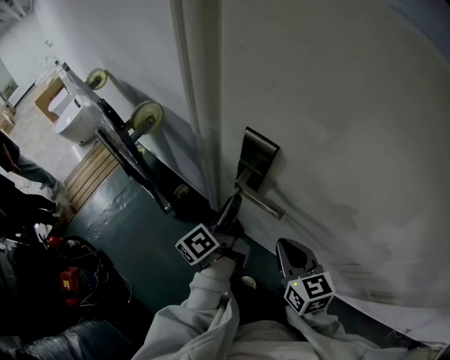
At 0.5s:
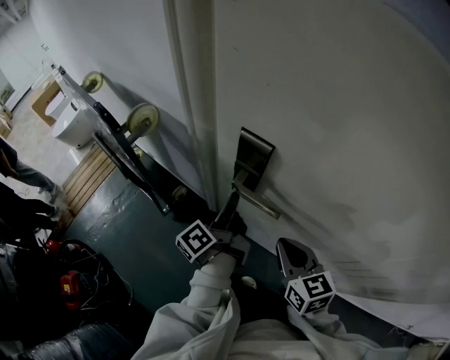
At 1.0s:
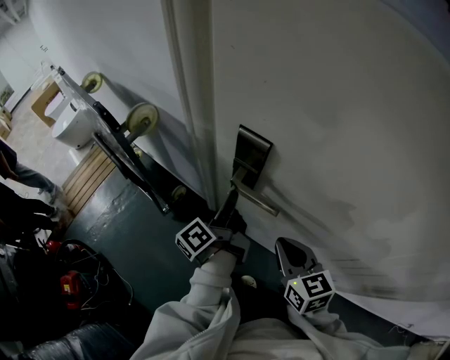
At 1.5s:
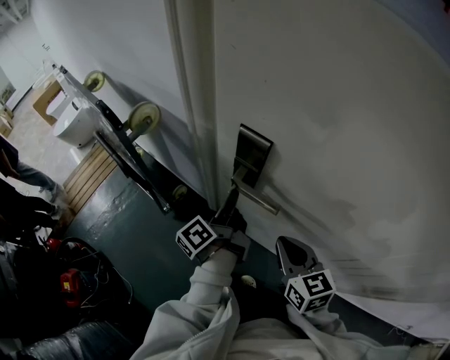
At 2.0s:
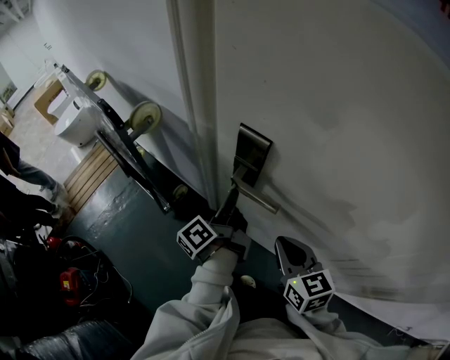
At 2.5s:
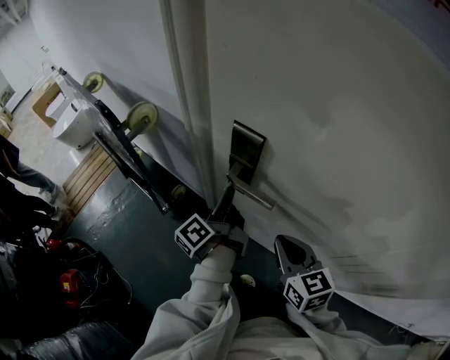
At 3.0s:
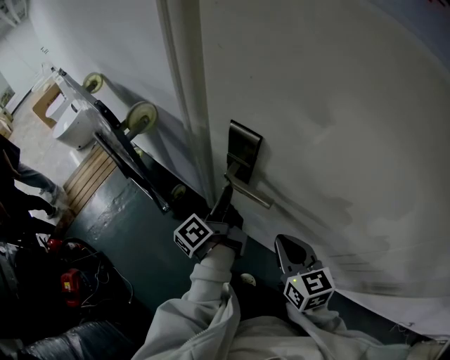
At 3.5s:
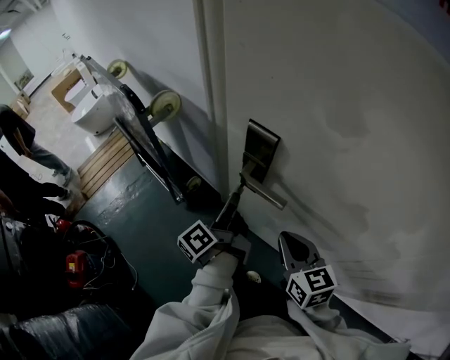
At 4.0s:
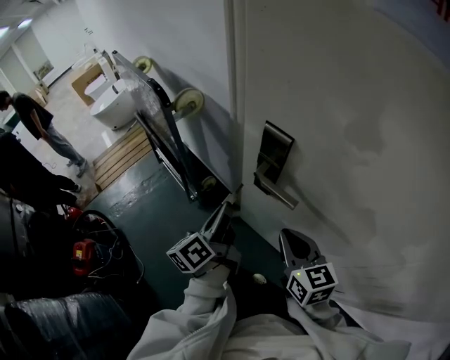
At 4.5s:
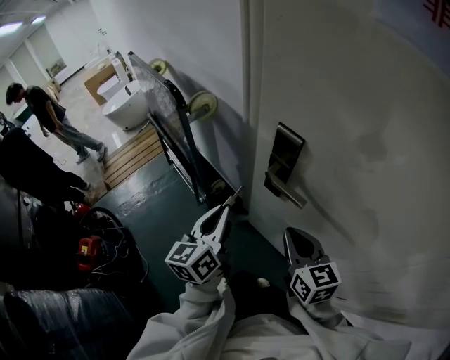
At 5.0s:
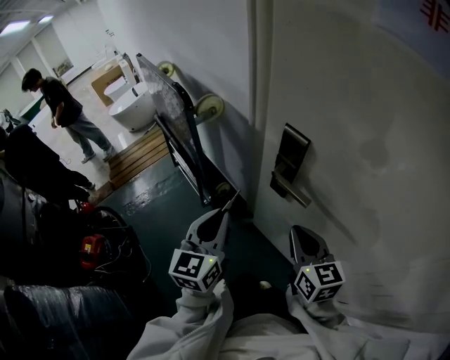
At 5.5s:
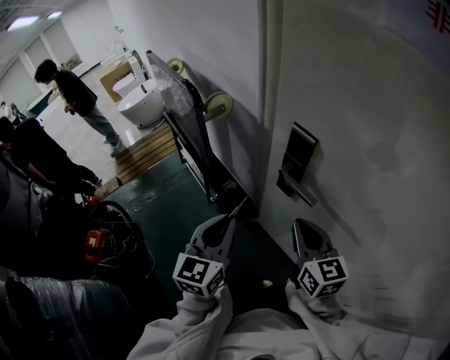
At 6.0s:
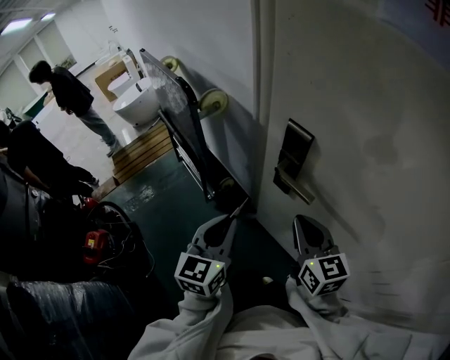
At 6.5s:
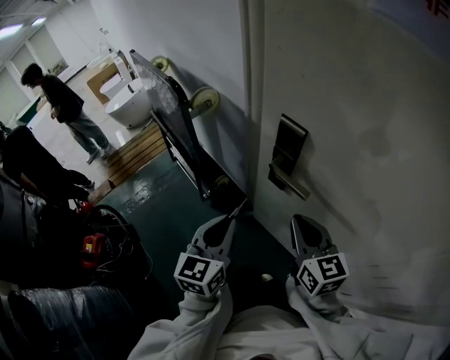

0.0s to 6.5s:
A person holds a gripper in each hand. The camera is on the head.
0.0s to 2.0s: The left gripper closes.
2.0s to 4.5s: The right gripper moves to the left, about 5 cm. The left gripper goes some 20 cm backward, to the left and upward, and rotates around the line of its fingers by about 50 degrees, clockwise from behind.
4.5s to 6.5s: The left gripper changes its angle by roughly 20 degrees.

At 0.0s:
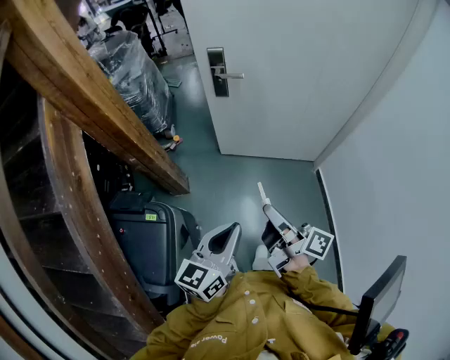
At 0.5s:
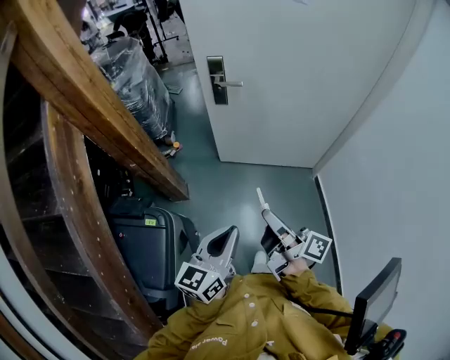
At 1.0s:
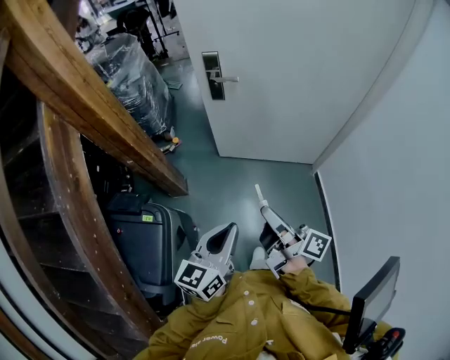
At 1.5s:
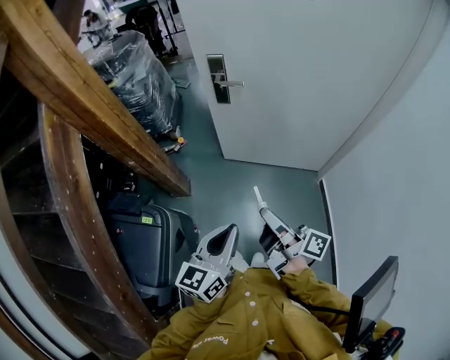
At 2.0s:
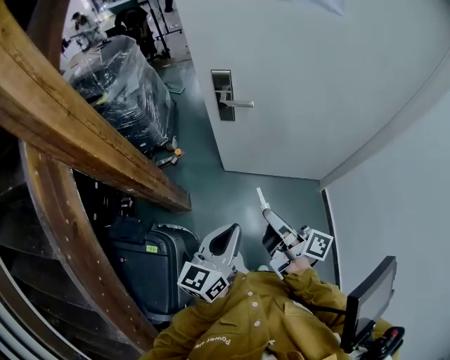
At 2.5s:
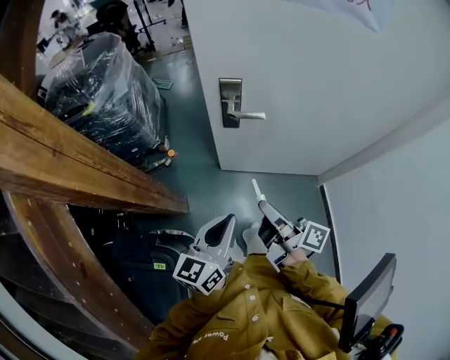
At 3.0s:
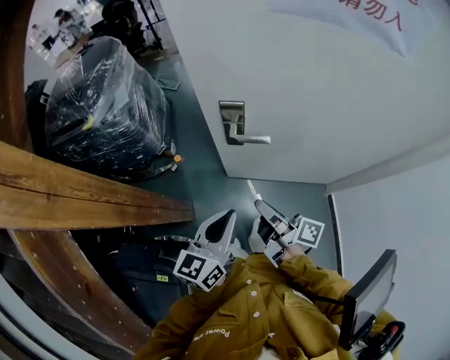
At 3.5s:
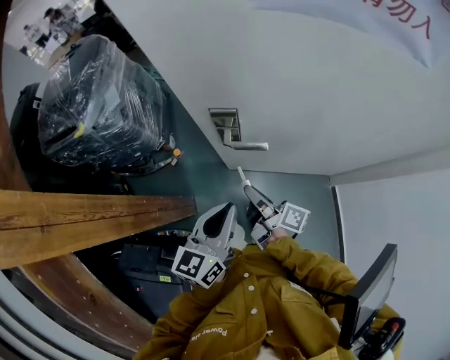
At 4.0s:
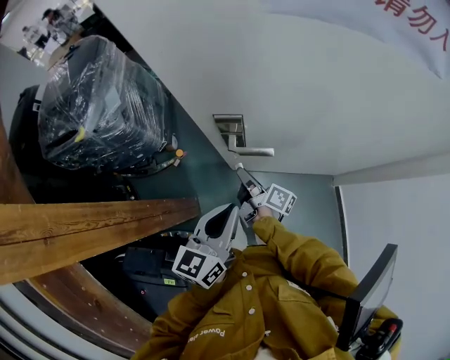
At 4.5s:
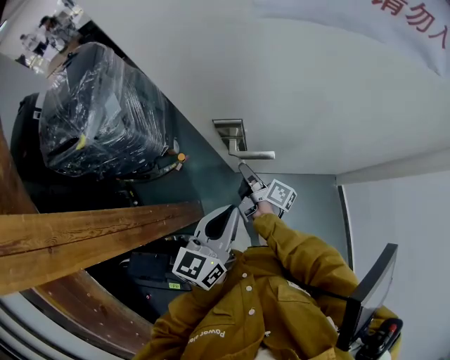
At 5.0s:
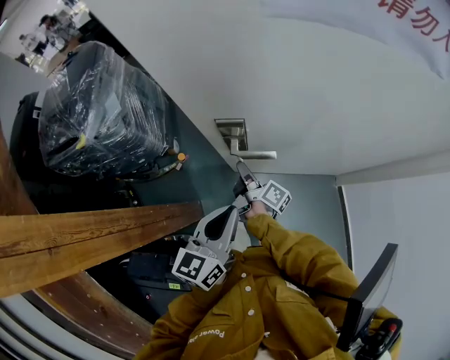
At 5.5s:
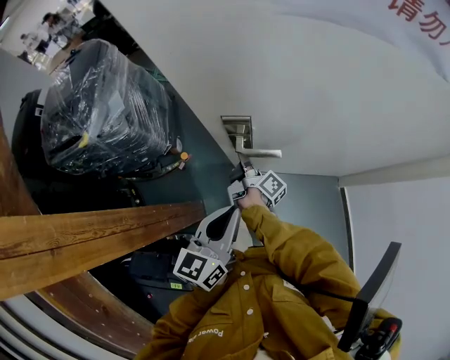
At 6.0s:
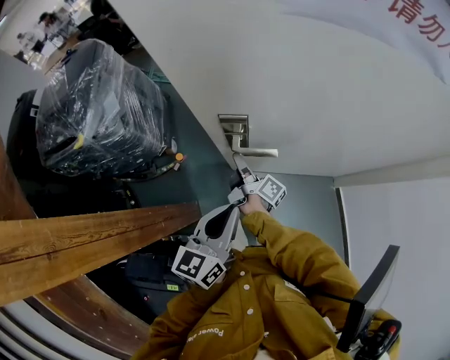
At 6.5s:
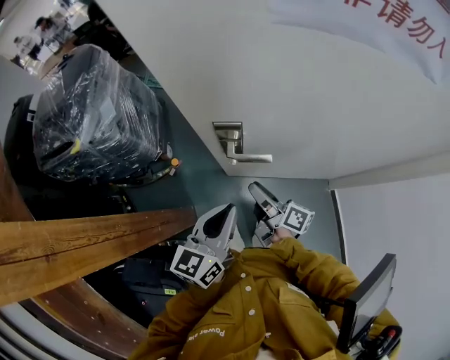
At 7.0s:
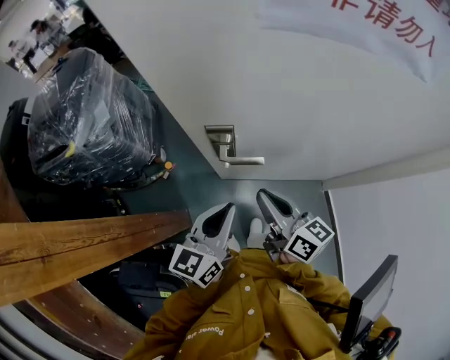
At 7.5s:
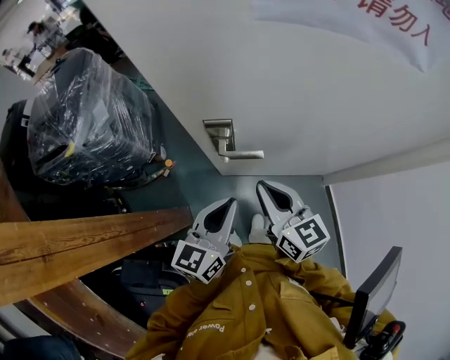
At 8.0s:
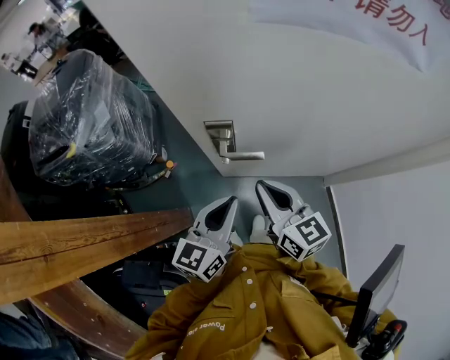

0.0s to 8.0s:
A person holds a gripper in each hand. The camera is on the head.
0.0s to 2.0s: The left gripper ends up some 15 cm from where it was.
2.0s to 4.0s: The left gripper ends up about 30 cm from where it was.

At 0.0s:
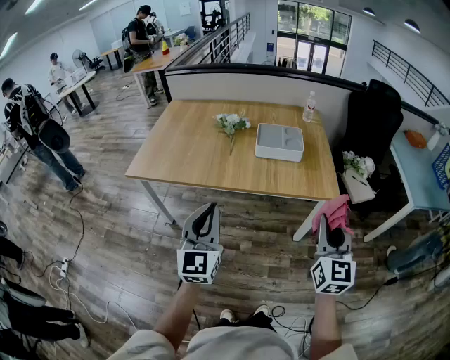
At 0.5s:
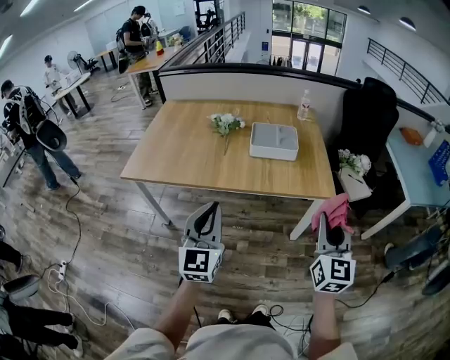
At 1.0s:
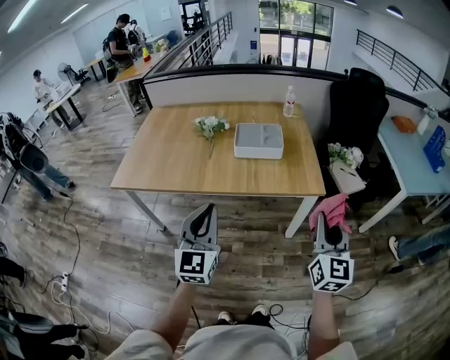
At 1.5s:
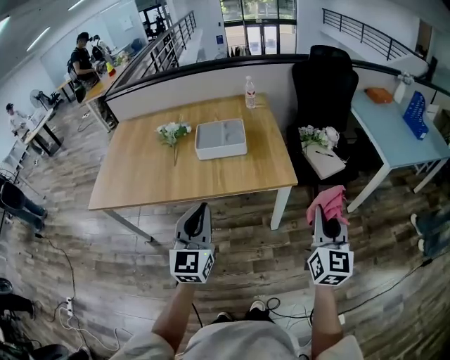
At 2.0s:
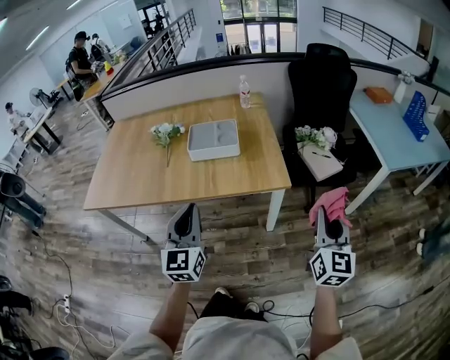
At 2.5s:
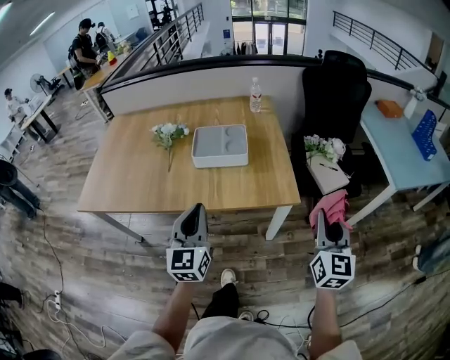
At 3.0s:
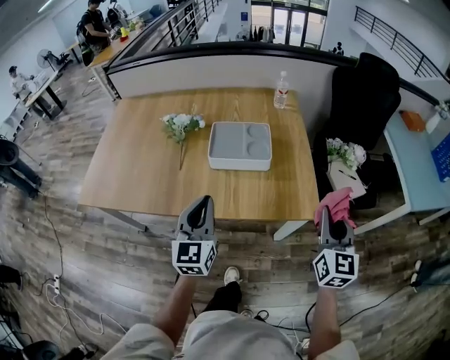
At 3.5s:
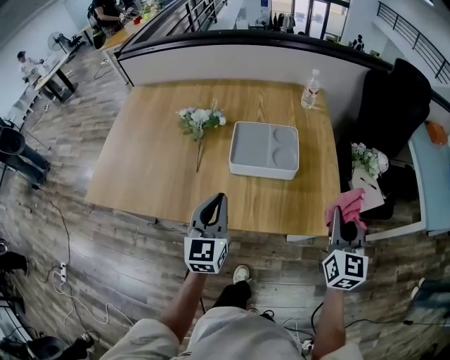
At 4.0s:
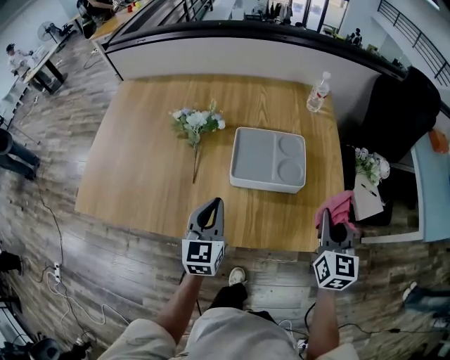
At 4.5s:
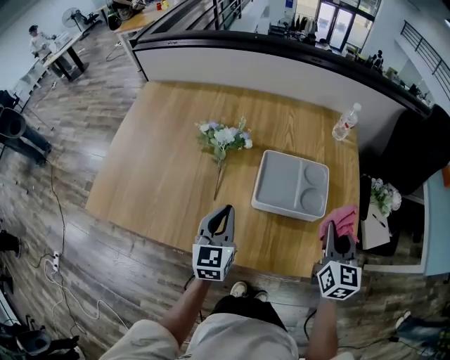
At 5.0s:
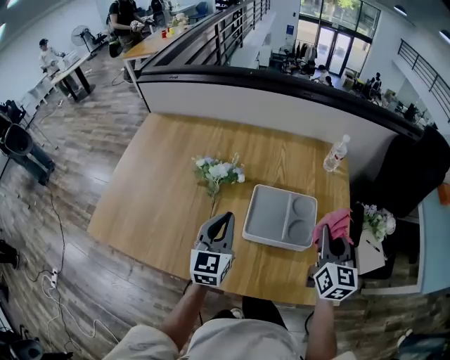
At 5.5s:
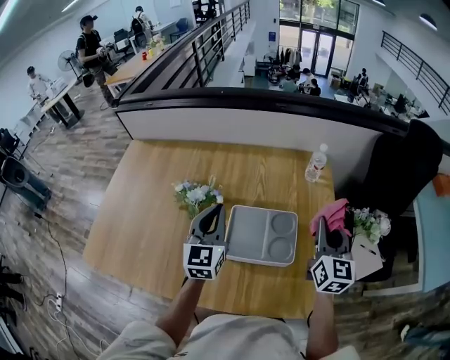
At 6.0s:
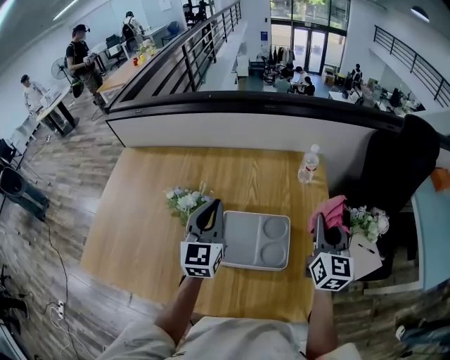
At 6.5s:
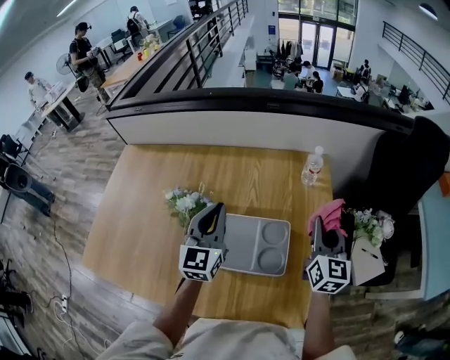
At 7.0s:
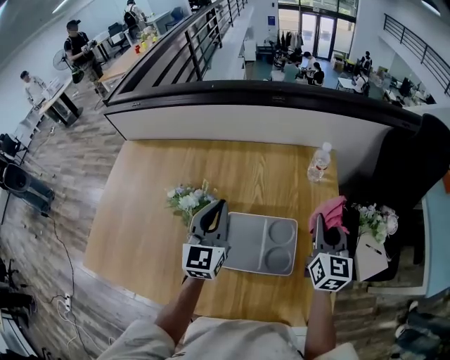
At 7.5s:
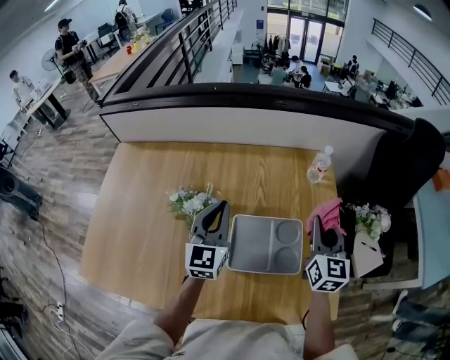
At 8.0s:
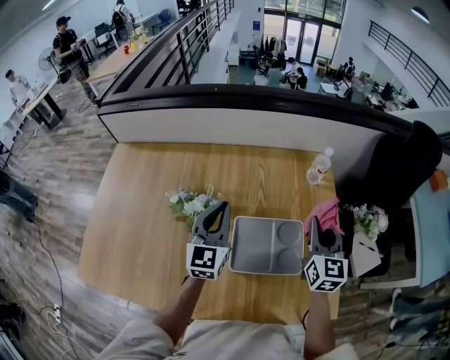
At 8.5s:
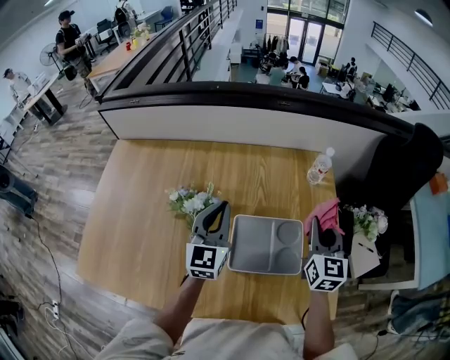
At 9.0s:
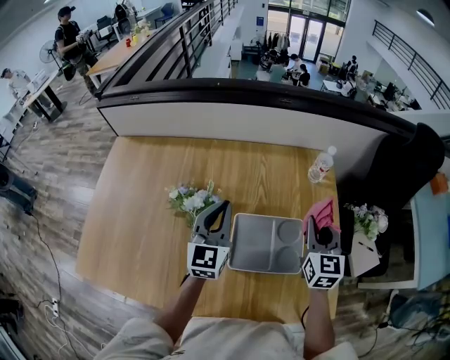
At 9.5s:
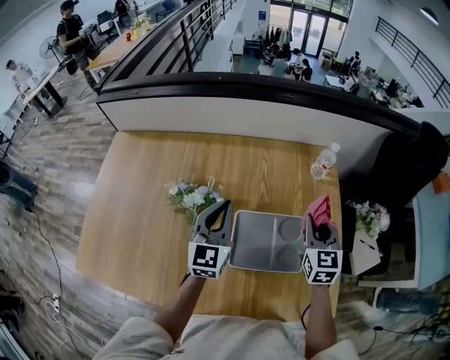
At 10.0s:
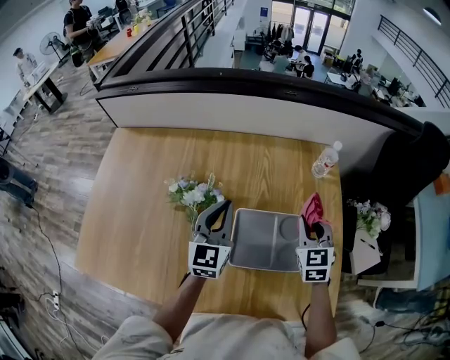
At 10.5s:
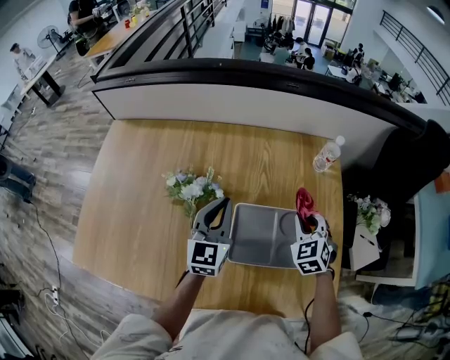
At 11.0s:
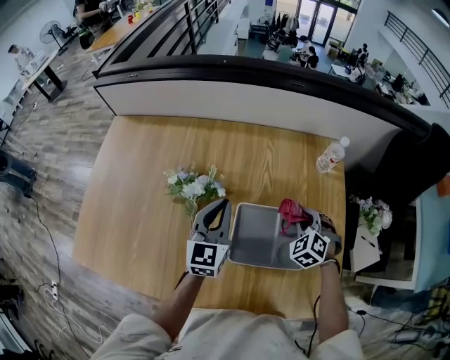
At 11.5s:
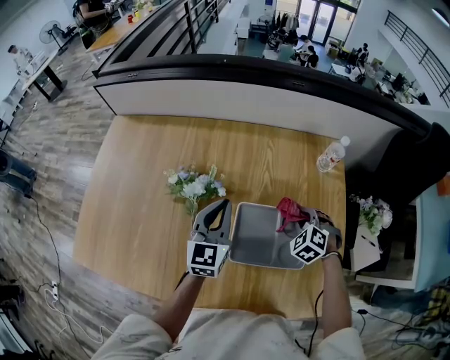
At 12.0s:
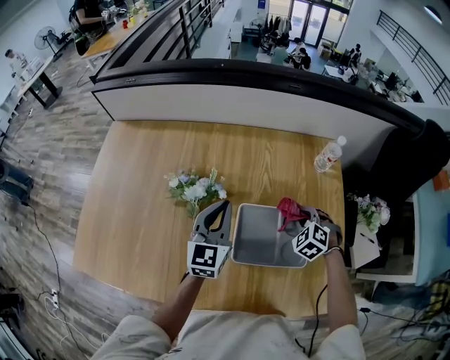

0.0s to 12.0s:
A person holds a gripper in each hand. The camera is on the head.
0.0s to 2.0s: The right gripper is displaced to the right by some 20 cm. Meanwhile the left gripper goes approximately 20 cm to the right and forward.
2.0s to 4.0s: The left gripper moves forward, to the left and downward, roughly 30 cm. Meanwhile the right gripper heads forward and to the left, covering roughly 35 cm.
4.0s to 6.0s: The left gripper is displaced forward and upward by approximately 25 cm. The right gripper heads forward, covering about 20 cm.
6.0s to 8.0s: The left gripper moves approximately 5 cm, while the right gripper is displaced to the left by some 5 cm.
8.0s to 10.0s: The right gripper goes about 5 cm downward, and turns by some 30 degrees.
10.0s to 12.0s: The right gripper travels downward by approximately 10 cm, and turns by approximately 50 degrees.

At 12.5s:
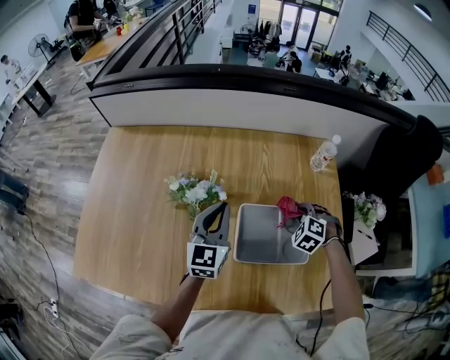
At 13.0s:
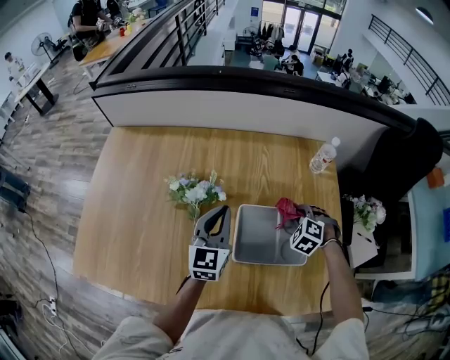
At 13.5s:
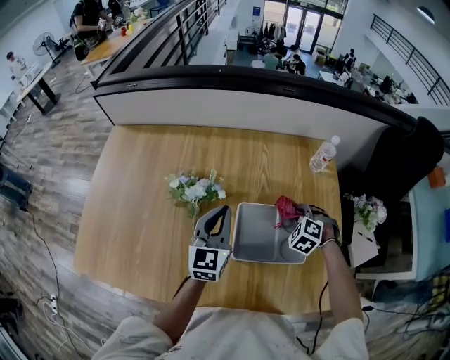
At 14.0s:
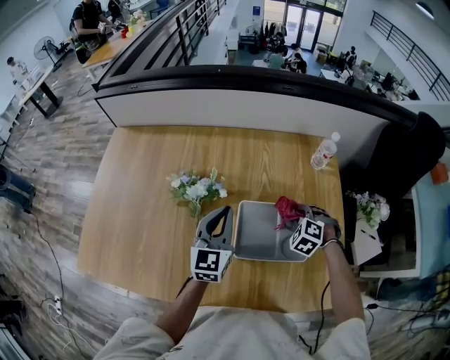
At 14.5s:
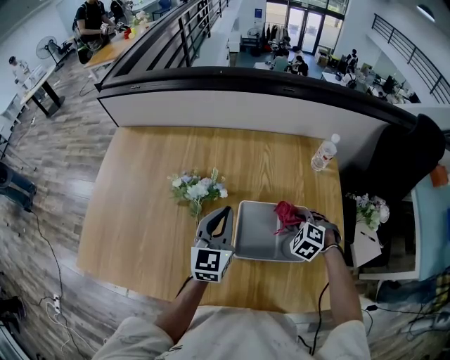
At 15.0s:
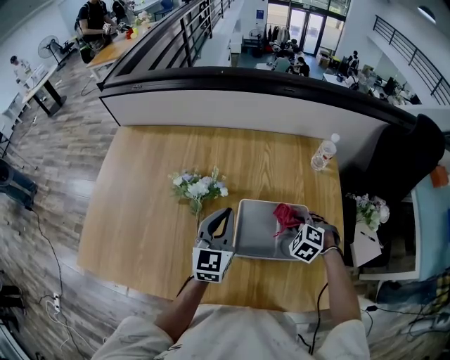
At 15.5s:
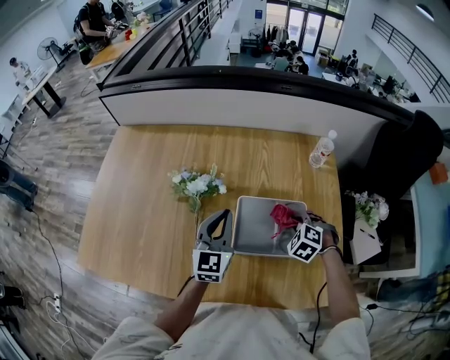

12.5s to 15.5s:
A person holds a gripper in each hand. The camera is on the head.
12.5s to 15.5s: The grippers stay close to where they were, moving slightly.
